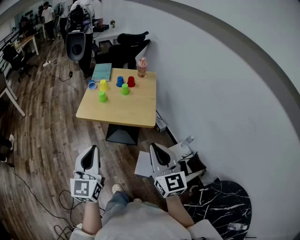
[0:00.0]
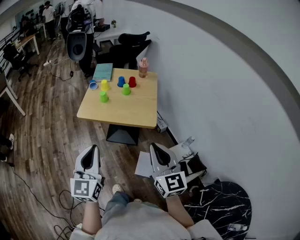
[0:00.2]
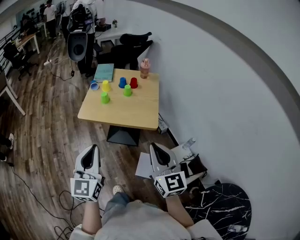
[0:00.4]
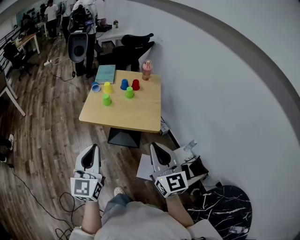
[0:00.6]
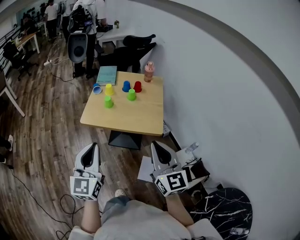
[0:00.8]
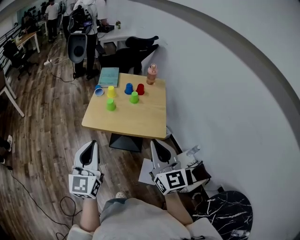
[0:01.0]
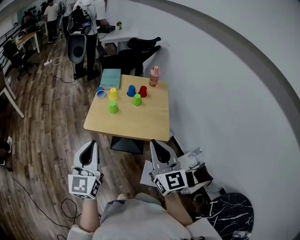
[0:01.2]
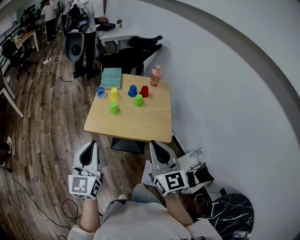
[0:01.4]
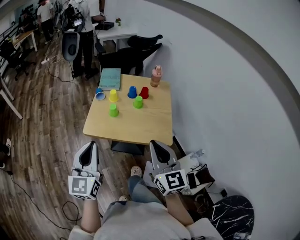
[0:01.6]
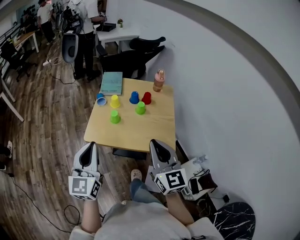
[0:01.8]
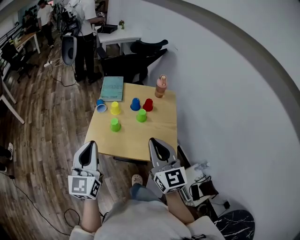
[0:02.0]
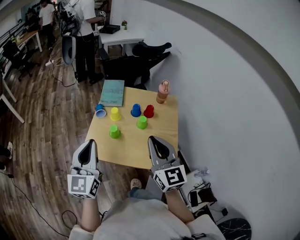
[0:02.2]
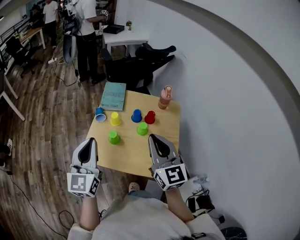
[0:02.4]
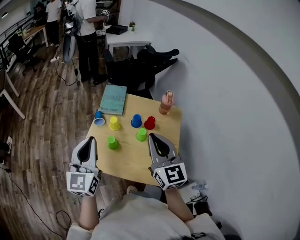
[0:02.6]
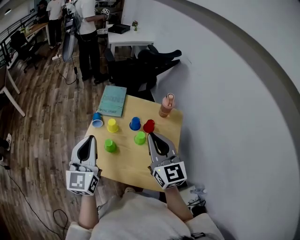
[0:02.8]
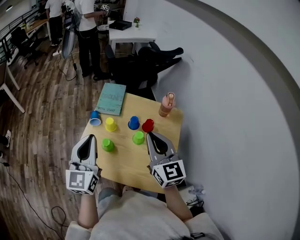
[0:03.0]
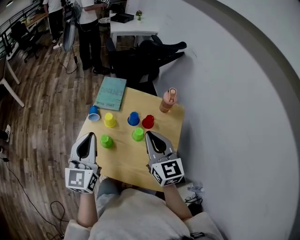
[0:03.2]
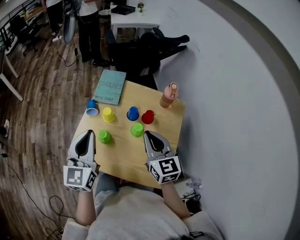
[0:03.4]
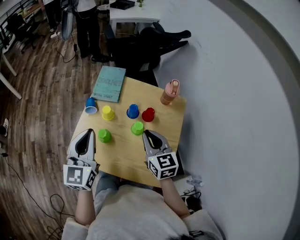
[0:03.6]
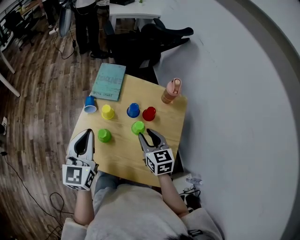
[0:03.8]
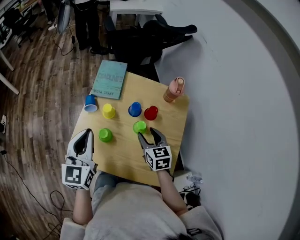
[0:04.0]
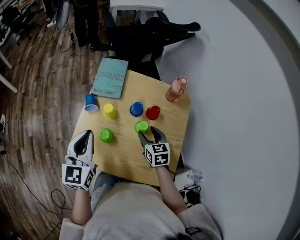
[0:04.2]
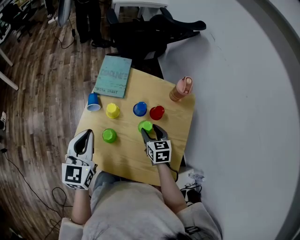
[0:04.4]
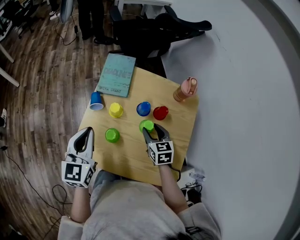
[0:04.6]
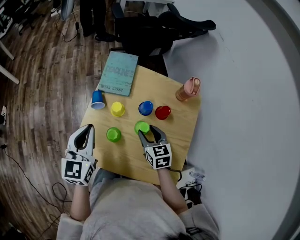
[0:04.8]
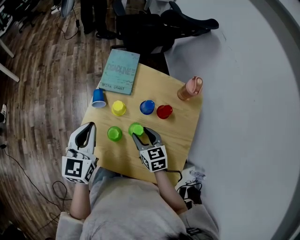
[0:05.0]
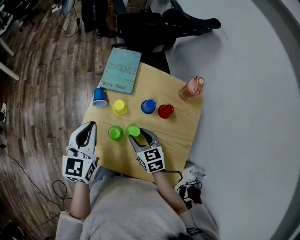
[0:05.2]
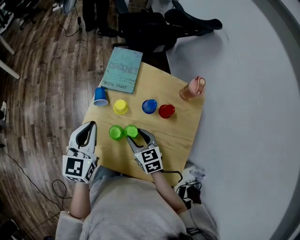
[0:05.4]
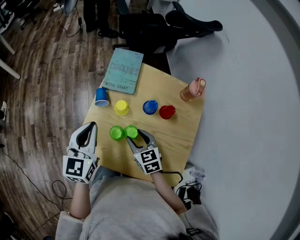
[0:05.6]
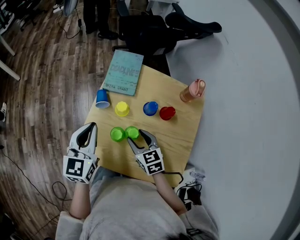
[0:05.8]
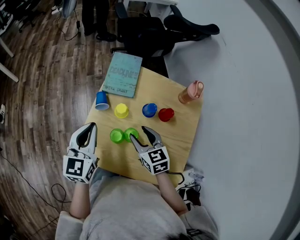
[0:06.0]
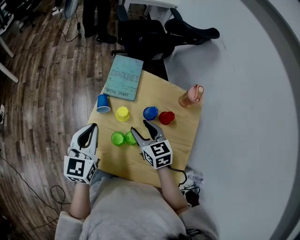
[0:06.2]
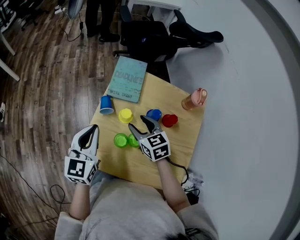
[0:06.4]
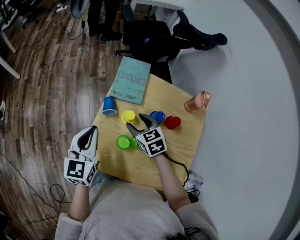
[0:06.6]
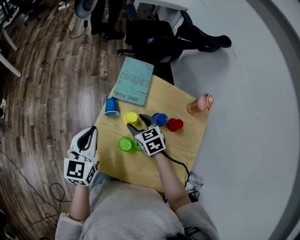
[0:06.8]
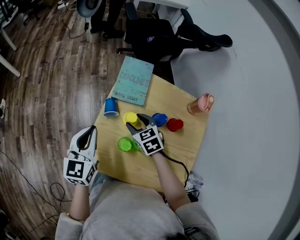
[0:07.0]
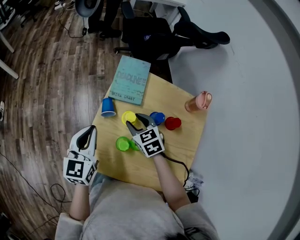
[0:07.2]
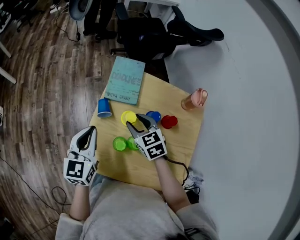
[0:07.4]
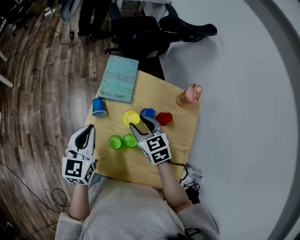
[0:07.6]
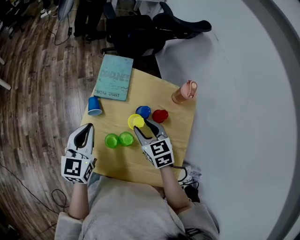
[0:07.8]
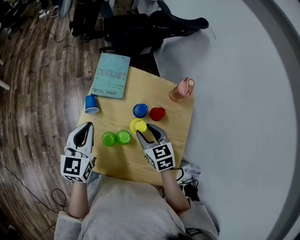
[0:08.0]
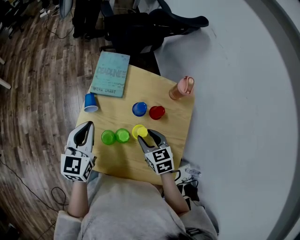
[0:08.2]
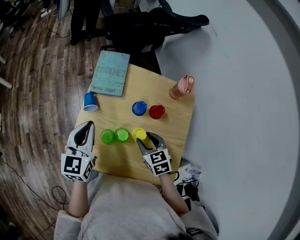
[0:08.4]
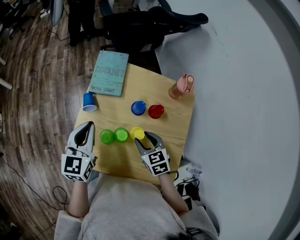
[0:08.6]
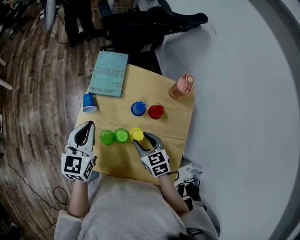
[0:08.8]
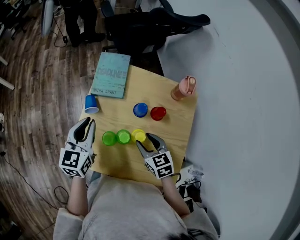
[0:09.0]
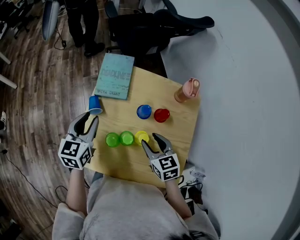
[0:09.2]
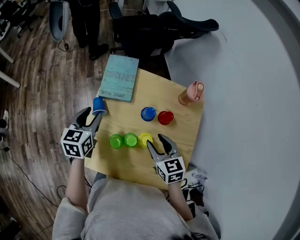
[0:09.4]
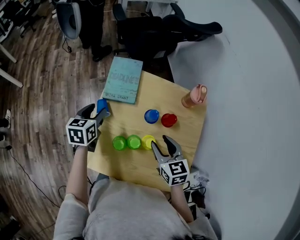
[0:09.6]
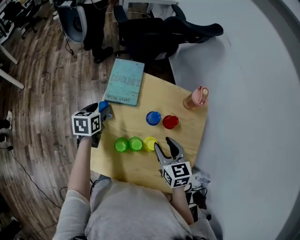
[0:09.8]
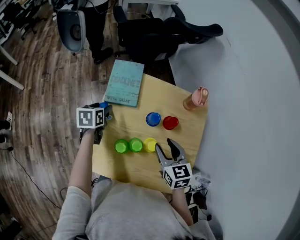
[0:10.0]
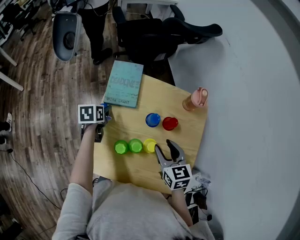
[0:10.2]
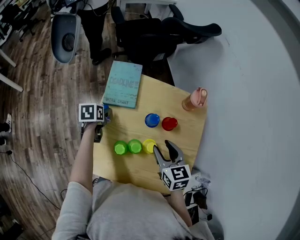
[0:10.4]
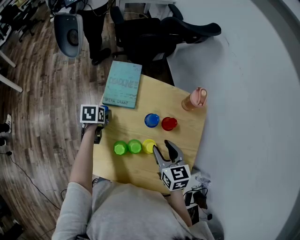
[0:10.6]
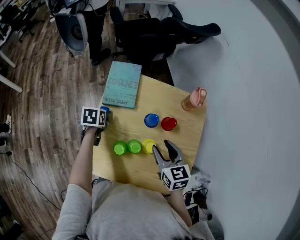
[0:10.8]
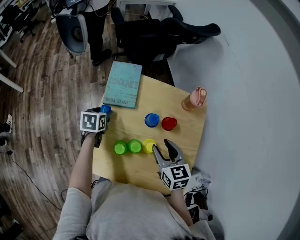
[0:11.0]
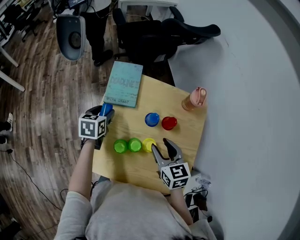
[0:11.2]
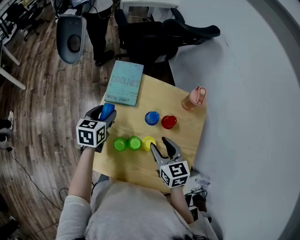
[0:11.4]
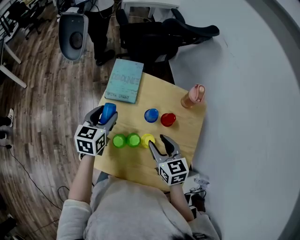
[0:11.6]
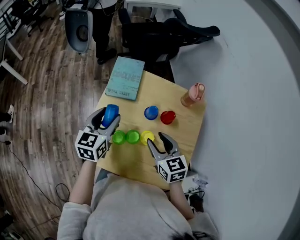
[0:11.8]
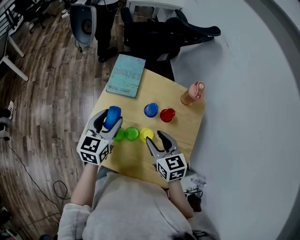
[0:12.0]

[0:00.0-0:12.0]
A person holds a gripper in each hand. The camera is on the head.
0:00.0 to 0:01.6: Both grippers move forward and to the left, some 20 cm.
0:01.6 to 0:03.0: Both grippers travel together forward, about 30 cm.
0:03.0 to 0:04.4: The right gripper shifts roughly 25 cm downward, tilts its fingers approximately 40 degrees downward, and opens up, while the left gripper is displaced downward and forward by about 15 cm.
0:04.4 to 0:06.0: The right gripper shifts roughly 10 cm to the left. The left gripper changes place by approximately 5 cm.
0:06.0 to 0:07.6: The right gripper travels forward by approximately 5 cm.
0:07.6 to 0:09.0: The right gripper shifts about 10 cm backward and to the right.
0:09.0 to 0:10.4: The left gripper heads downward and forward, covering approximately 20 cm, tilts its fingers roughly 40 degrees downward, and opens, while the right gripper moves upward, some 5 cm.
0:10.4 to 0:12.0: The left gripper heads upward, backward and to the right, covering roughly 20 cm, and tilts its fingers roughly 40 degrees upward.

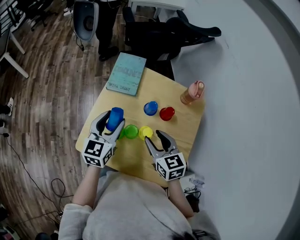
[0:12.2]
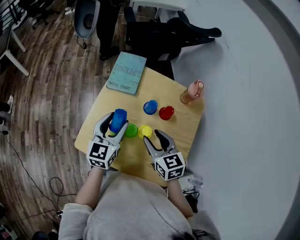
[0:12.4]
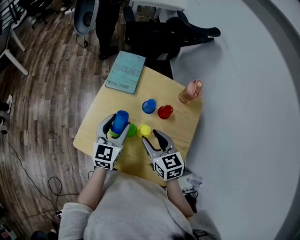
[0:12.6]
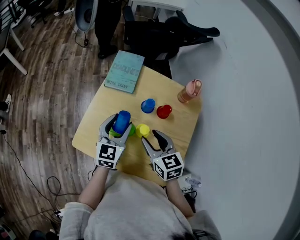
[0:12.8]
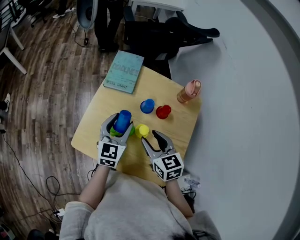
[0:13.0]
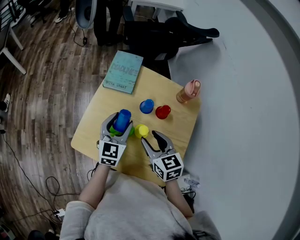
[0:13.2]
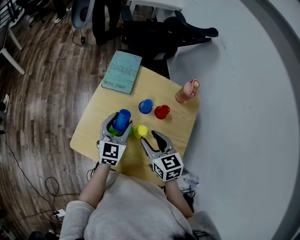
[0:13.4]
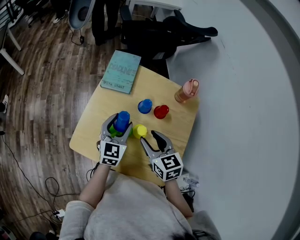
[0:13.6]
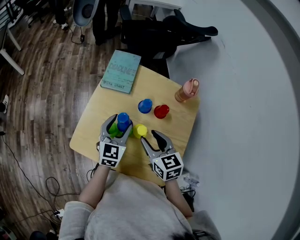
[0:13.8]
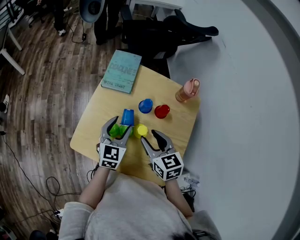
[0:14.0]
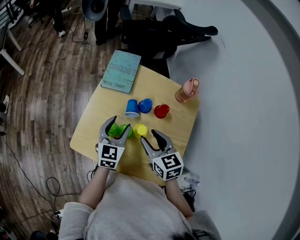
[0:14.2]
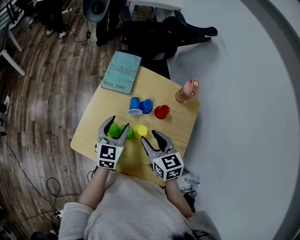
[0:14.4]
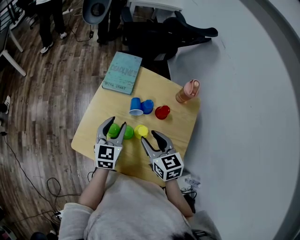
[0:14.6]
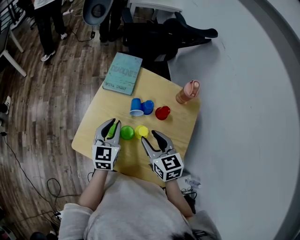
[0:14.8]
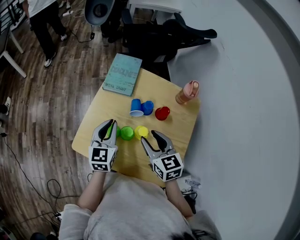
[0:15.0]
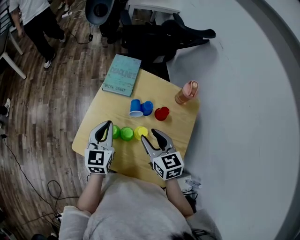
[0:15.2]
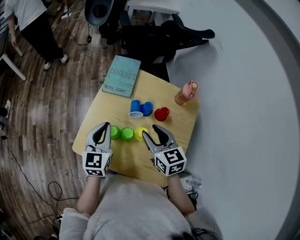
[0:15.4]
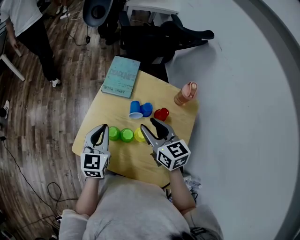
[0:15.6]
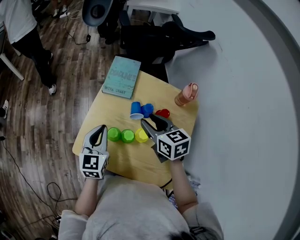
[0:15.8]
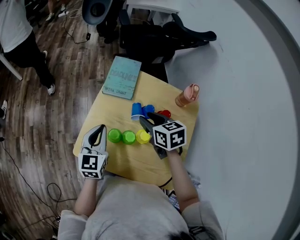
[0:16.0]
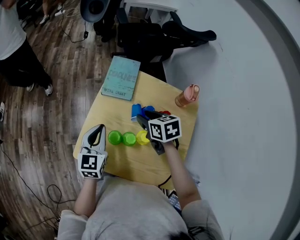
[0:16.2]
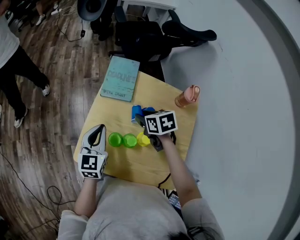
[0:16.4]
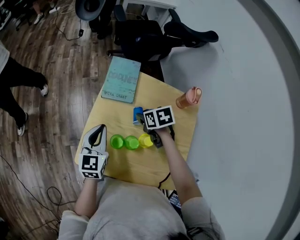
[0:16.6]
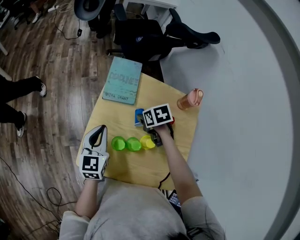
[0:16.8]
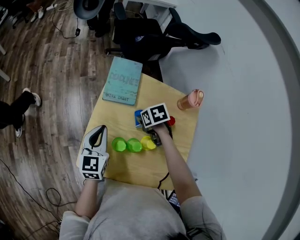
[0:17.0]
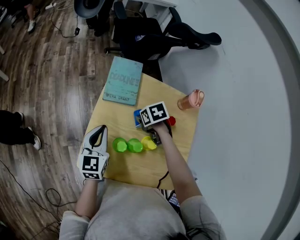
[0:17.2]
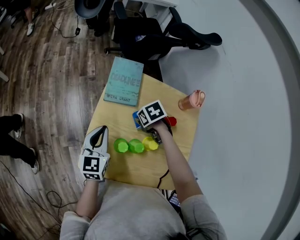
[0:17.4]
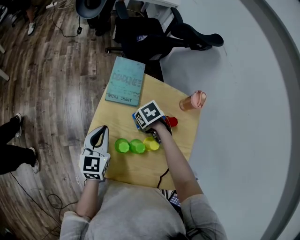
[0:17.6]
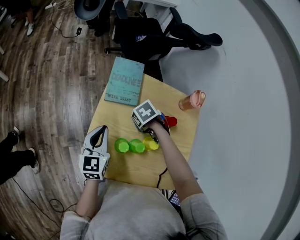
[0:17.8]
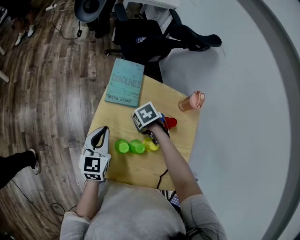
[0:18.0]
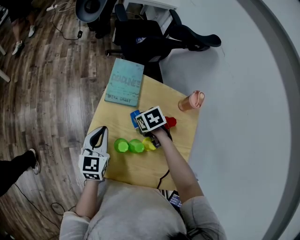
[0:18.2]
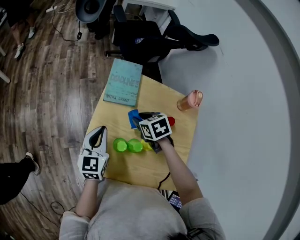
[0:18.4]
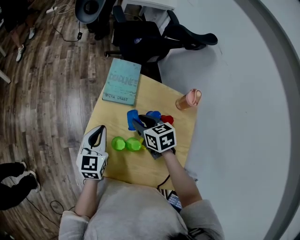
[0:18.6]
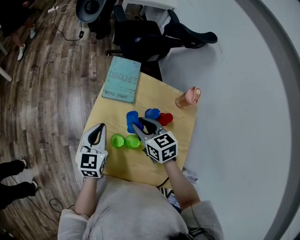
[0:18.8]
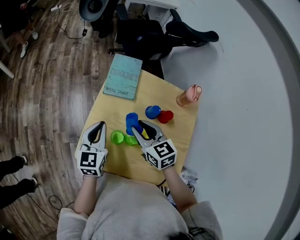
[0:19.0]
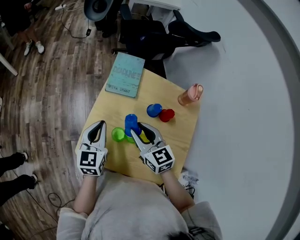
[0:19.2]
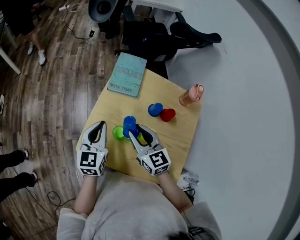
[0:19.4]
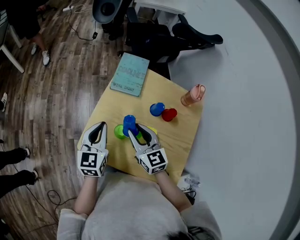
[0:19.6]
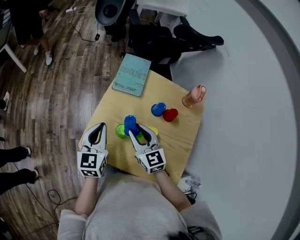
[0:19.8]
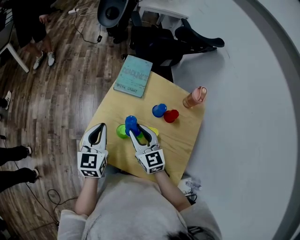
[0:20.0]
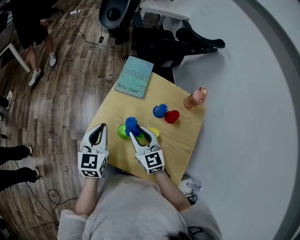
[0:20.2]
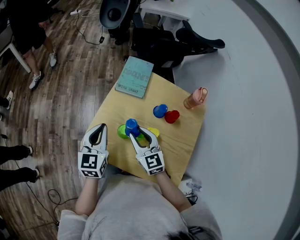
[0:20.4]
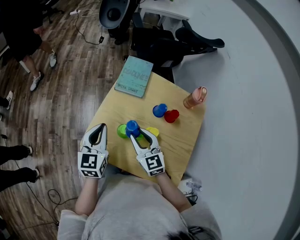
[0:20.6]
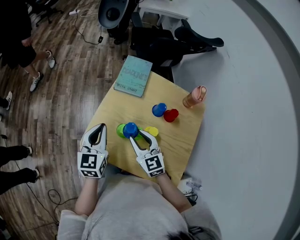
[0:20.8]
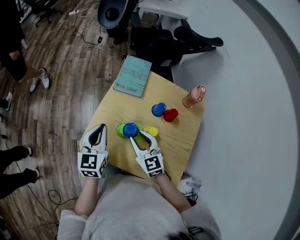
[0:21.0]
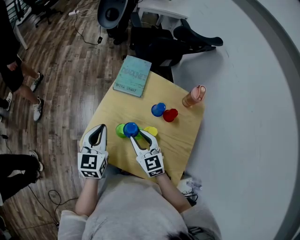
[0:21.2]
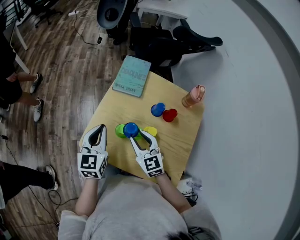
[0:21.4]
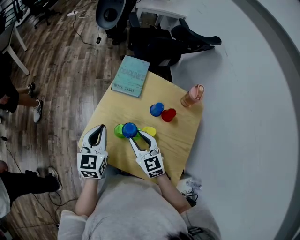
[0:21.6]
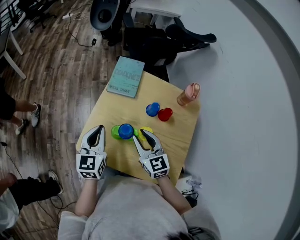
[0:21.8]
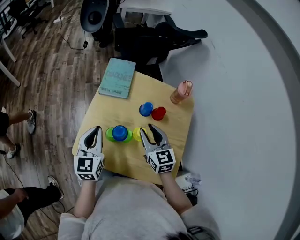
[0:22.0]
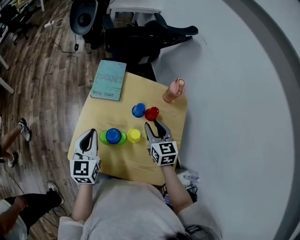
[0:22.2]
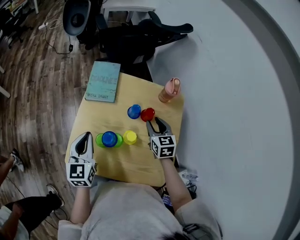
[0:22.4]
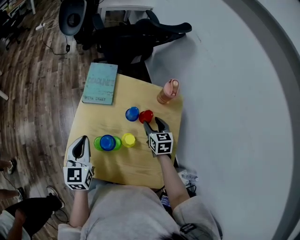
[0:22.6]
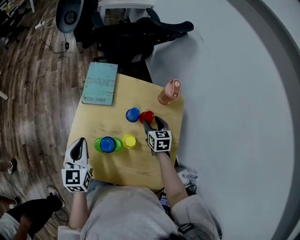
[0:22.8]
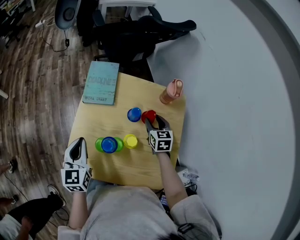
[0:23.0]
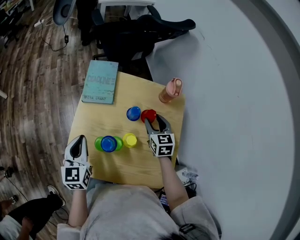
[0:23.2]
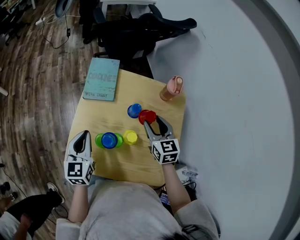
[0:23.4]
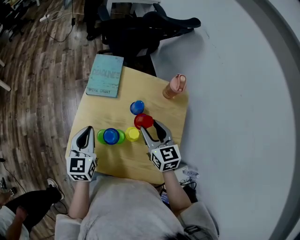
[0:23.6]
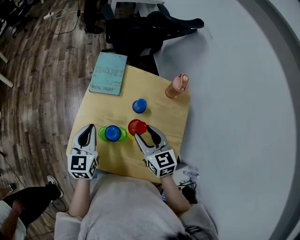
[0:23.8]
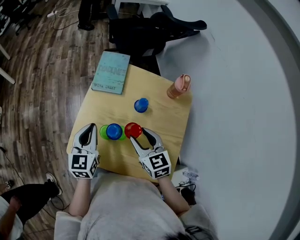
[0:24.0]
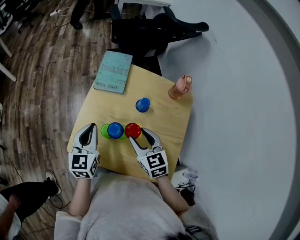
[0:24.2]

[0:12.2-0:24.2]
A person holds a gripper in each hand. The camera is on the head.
0:12.2 to 0:13.8: The left gripper travels to the right by roughly 5 cm.
0:13.8 to 0:15.2: The left gripper travels to the left by about 5 cm, and closes.
0:15.2 to 0:16.6: The left gripper moves forward, roughly 5 cm, while the right gripper moves forward and downward, approximately 20 cm, and angles its fingers downward, by about 30 degrees.
0:18.2 to 0:19.8: The right gripper heads backward, upward and to the left, covering approximately 15 cm, and tilts its fingers about 60 degrees upward. The left gripper shifts some 10 cm backward.
0:19.8 to 0:21.2: The grippers move only a little.
0:21.2 to 0:22.6: The left gripper changes place by about 5 cm. Meanwhile the right gripper travels to the right and forward by approximately 25 cm, and changes its angle by approximately 40 degrees.
0:22.6 to 0:24.2: The right gripper heads to the left, backward and upward, covering approximately 20 cm, and turns by approximately 20 degrees.
